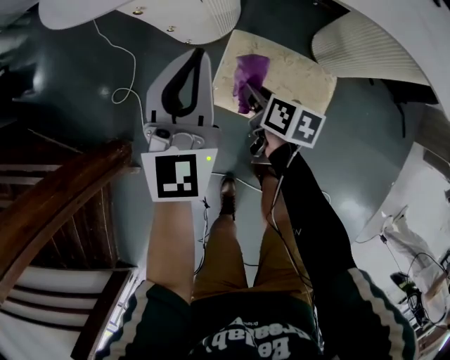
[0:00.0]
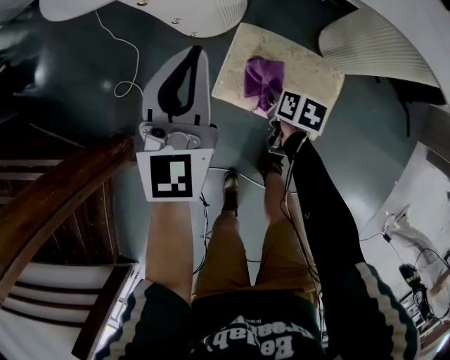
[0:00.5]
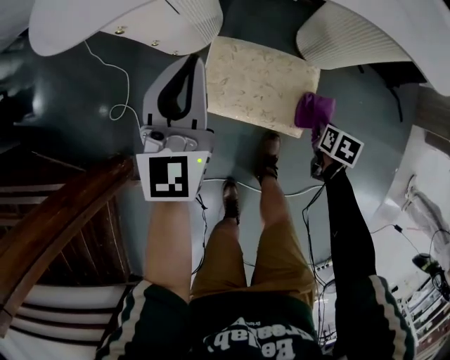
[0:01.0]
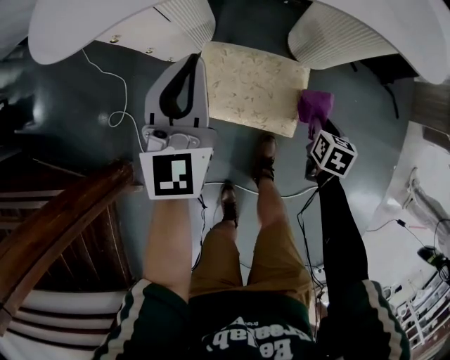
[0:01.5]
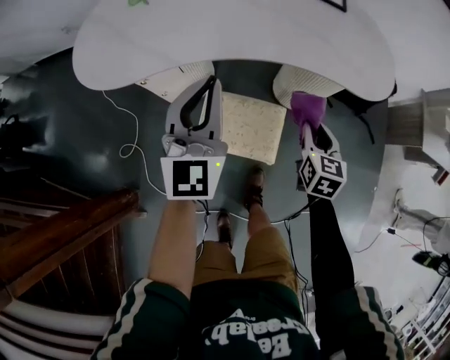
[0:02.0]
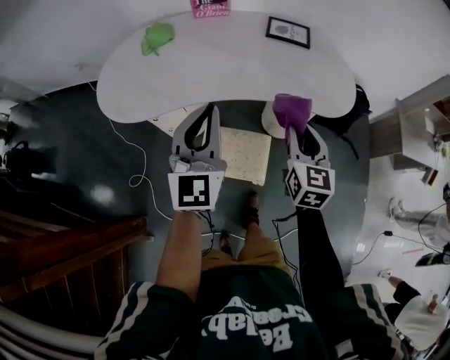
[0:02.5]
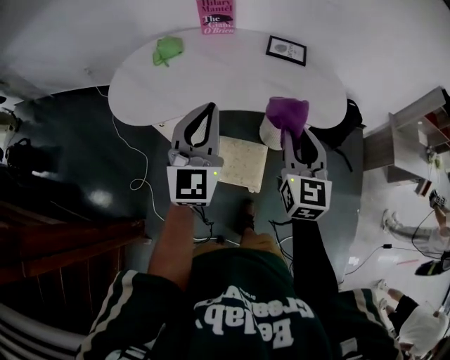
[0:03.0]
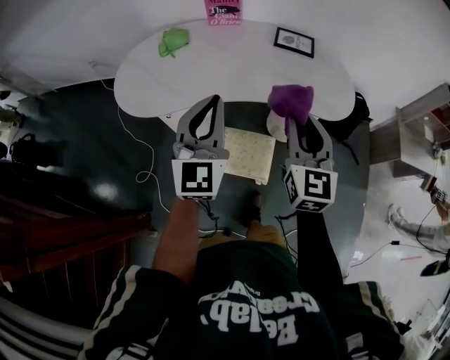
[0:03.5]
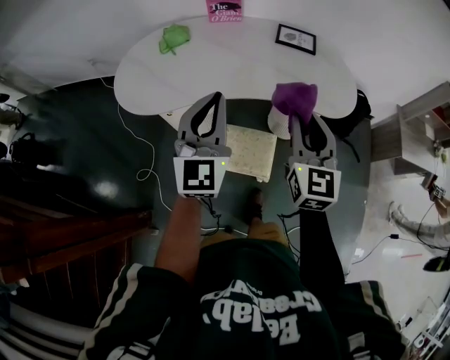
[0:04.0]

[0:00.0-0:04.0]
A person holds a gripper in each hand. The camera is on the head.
0:00.0 to 0:02.0: The right gripper moves about 30 cm, and rotates approximately 50 degrees, while the left gripper shifts some 15 cm upward.
0:02.0 to 0:04.0: The left gripper travels upward by roughly 20 cm. Meanwhile the right gripper shifts roughly 35 cm upward, and rotates approximately 30 degrees.

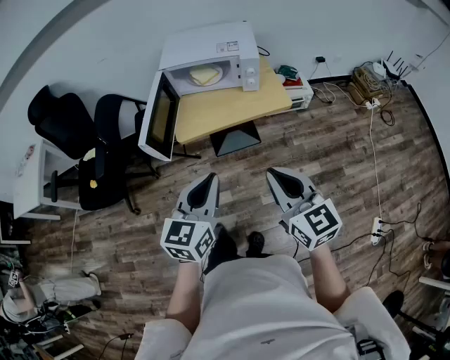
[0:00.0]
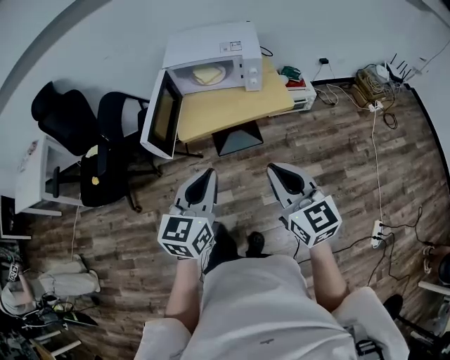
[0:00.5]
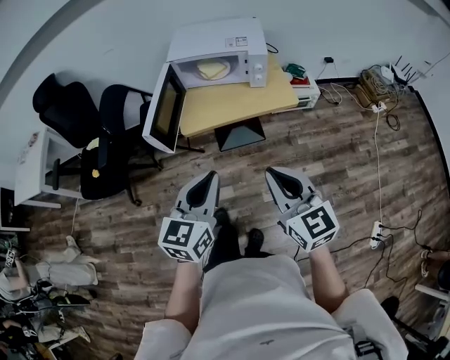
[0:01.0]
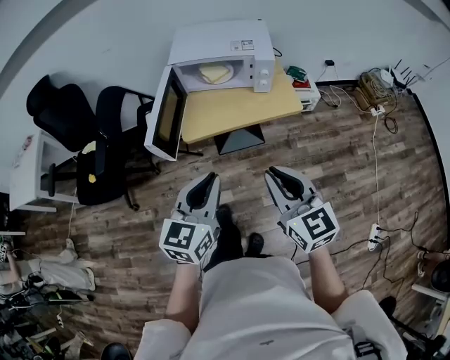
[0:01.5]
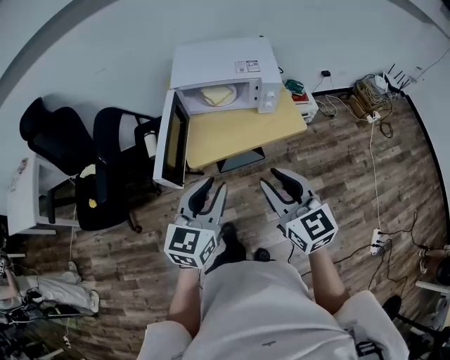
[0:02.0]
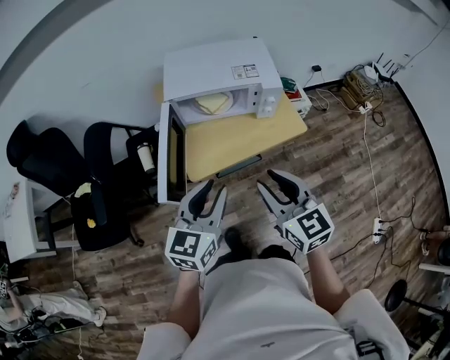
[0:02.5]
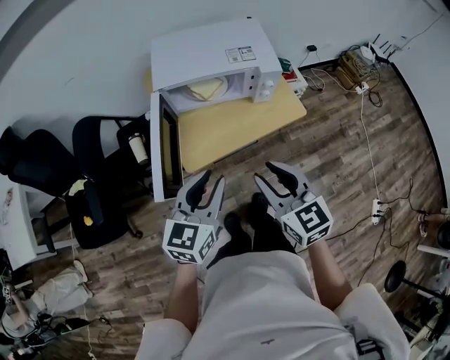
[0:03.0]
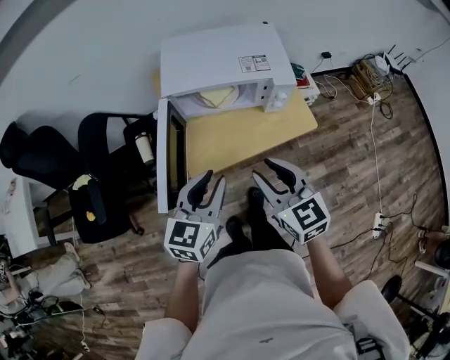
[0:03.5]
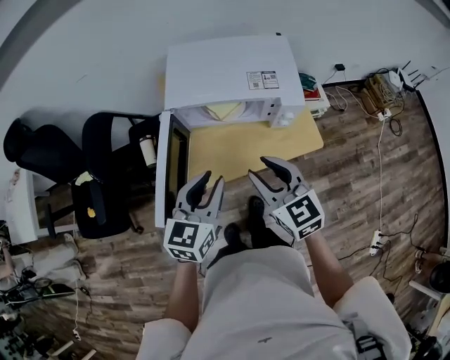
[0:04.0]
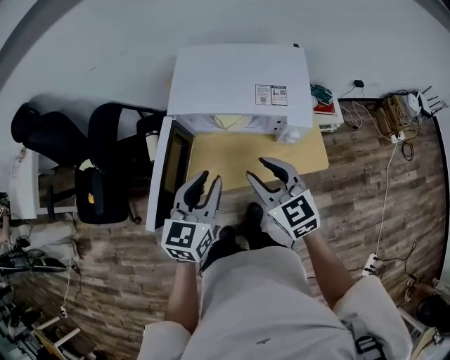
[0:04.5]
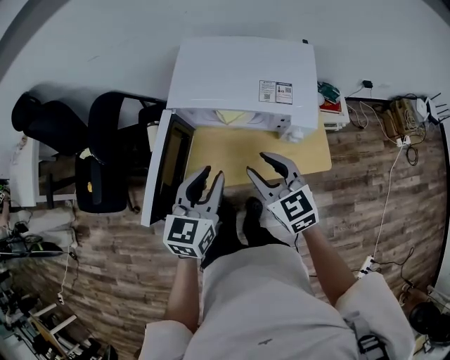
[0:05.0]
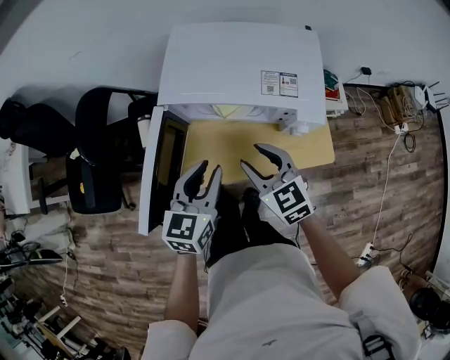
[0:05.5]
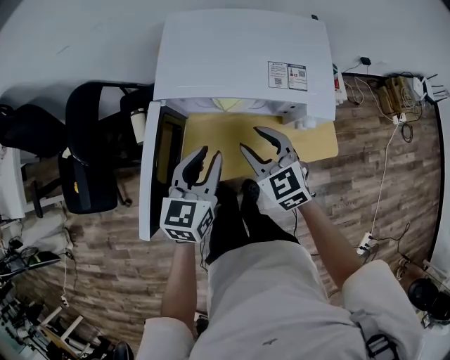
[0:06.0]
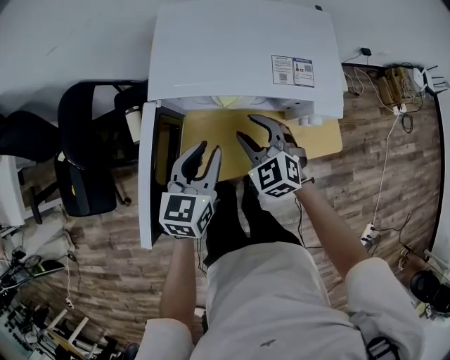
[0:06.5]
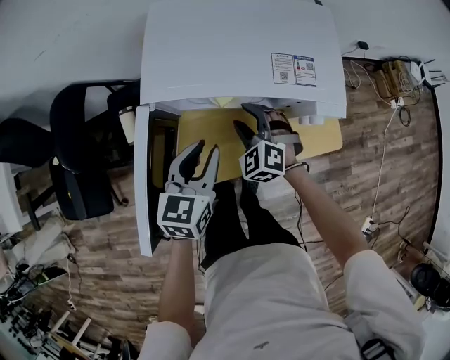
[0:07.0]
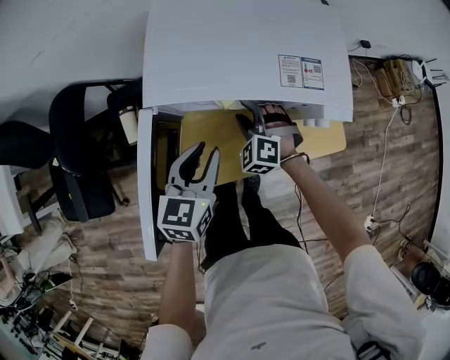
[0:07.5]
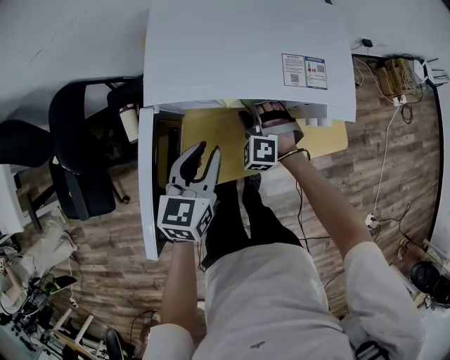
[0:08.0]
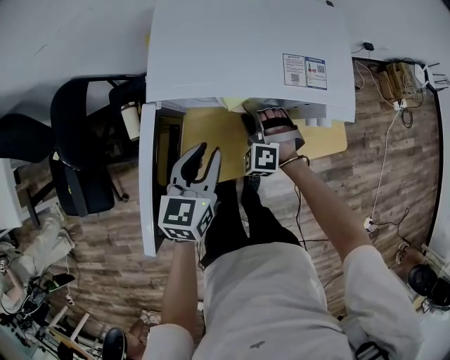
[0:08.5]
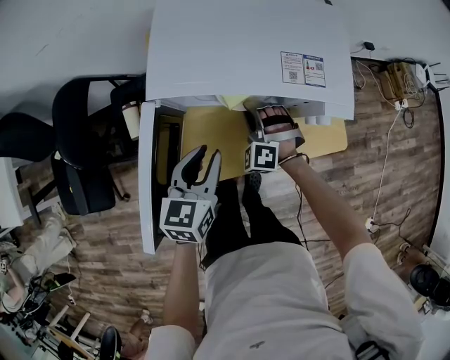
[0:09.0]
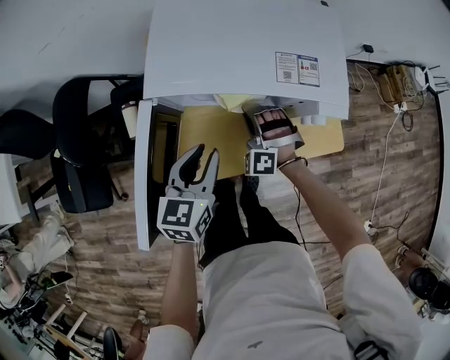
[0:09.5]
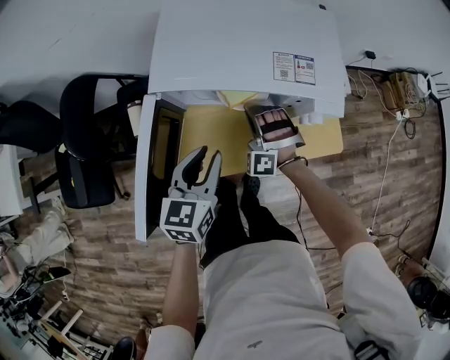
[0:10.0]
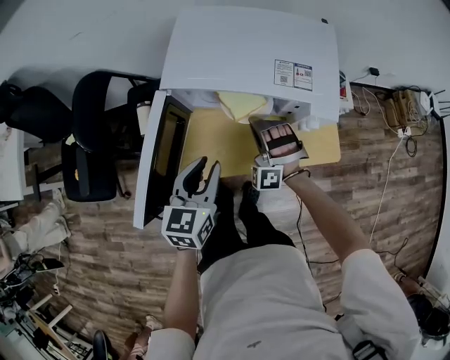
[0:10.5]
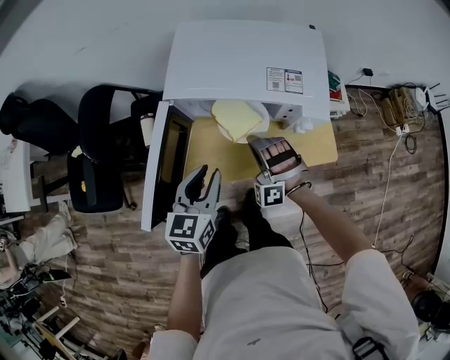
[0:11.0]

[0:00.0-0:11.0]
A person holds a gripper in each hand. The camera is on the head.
0:00.0 to 0:02.0: The two grippers go some 15 cm forward and to the left. The left gripper opens up; the right gripper opens its fingers.
0:02.0 to 0:03.5: The right gripper shifts approximately 15 cm forward and downward. Meanwhile the left gripper heads forward, covering some 15 cm.
0:03.5 to 0:05.5: Both grippers travel together forward and downward, some 15 cm. The right gripper swivels roughly 20 degrees.
0:05.5 to 0:07.5: The right gripper goes some 20 cm downward and forward, and rolls counterclockwise, seen from behind, by approximately 40 degrees, while the left gripper heads downward and forward, covering some 10 cm.
0:07.5 to 0:09.0: The right gripper closes.
0:09.0 to 0:11.0: The left gripper travels backward and upward by about 10 cm. The right gripper moves upward and backward, approximately 15 cm, and rotates about 30 degrees.

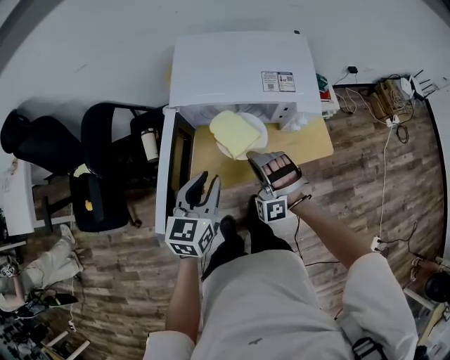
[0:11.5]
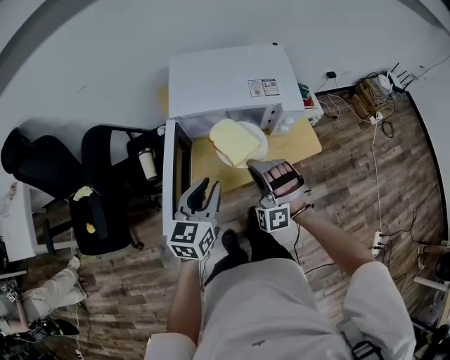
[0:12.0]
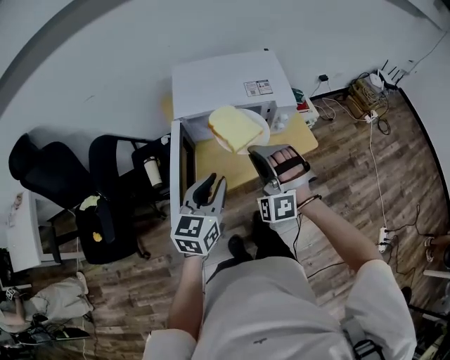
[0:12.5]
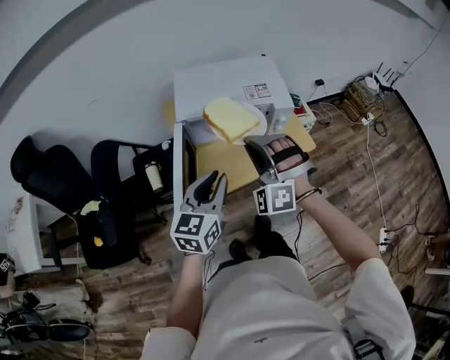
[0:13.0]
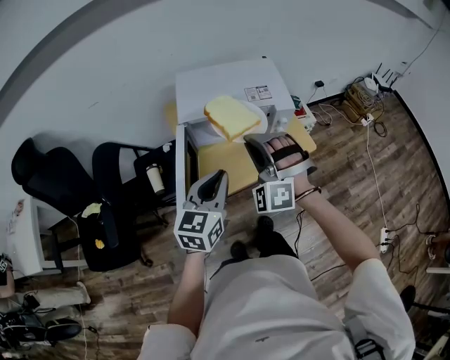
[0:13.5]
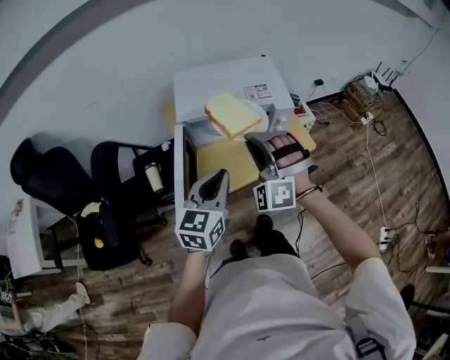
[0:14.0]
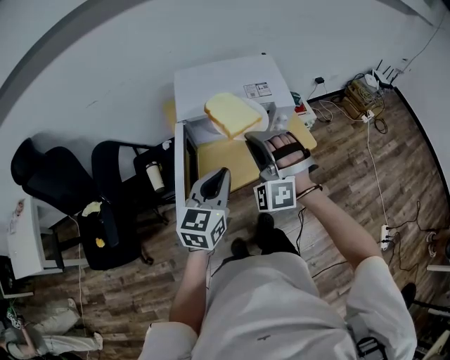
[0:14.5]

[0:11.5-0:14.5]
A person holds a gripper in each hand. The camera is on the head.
0:11.5 to 0:13.0: The left gripper heads upward and backward, covering about 10 cm, while the right gripper shifts some 20 cm upward.
0:13.0 to 0:14.5: There are only small adjustments of the grippers.

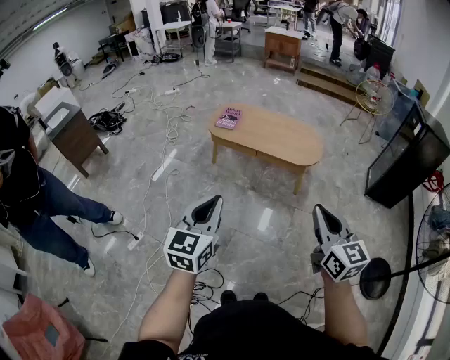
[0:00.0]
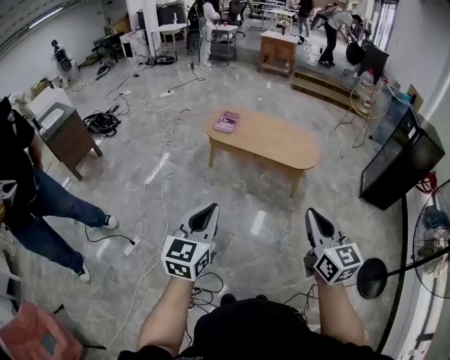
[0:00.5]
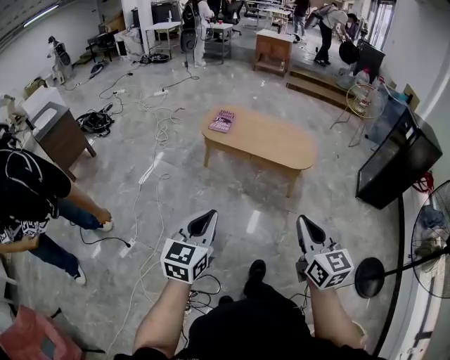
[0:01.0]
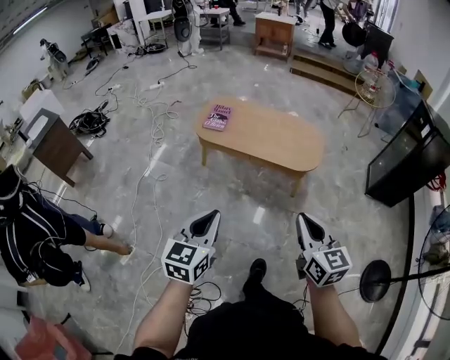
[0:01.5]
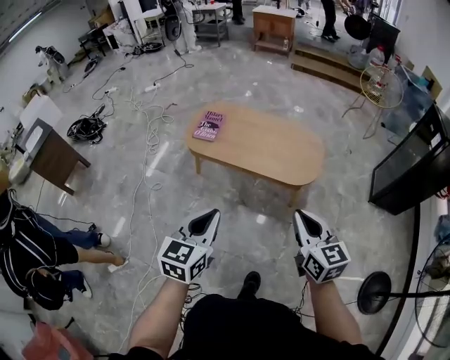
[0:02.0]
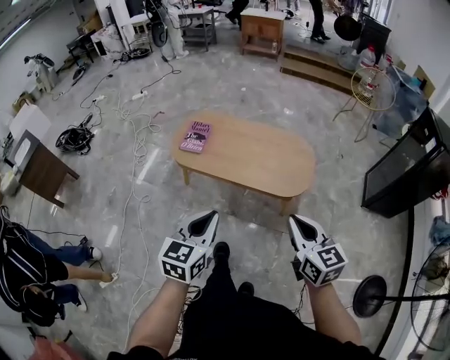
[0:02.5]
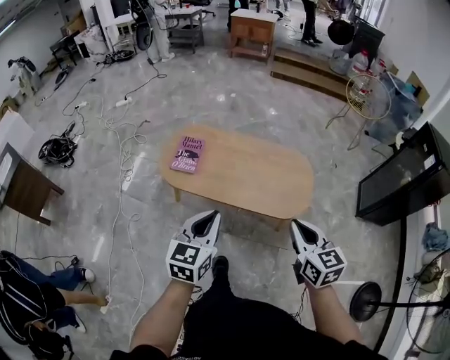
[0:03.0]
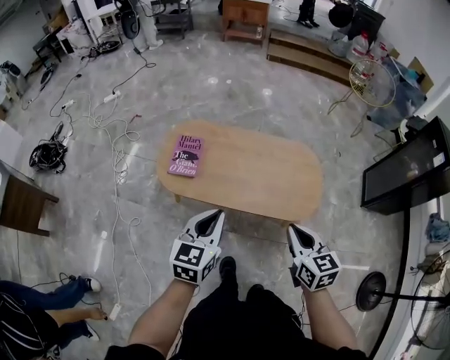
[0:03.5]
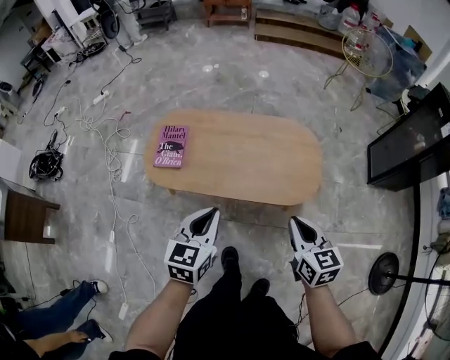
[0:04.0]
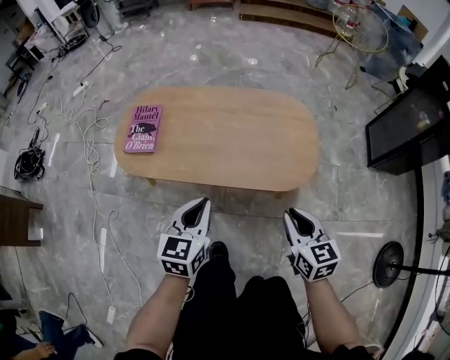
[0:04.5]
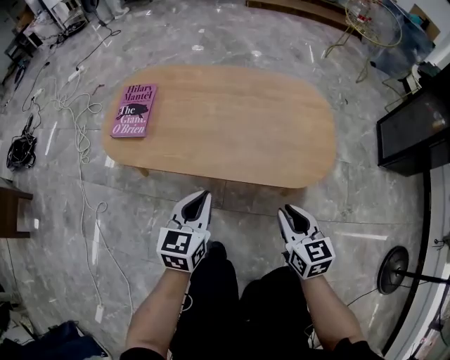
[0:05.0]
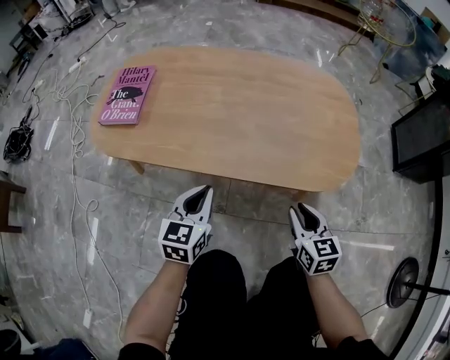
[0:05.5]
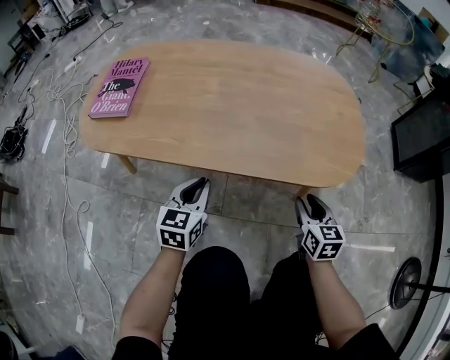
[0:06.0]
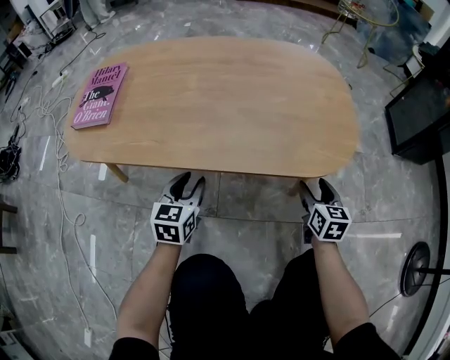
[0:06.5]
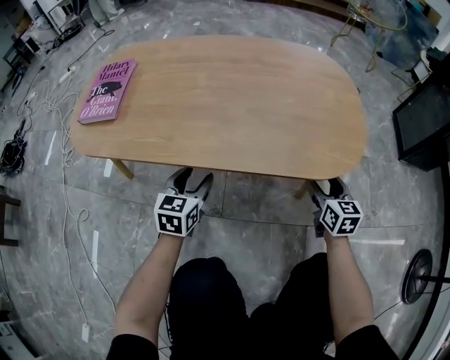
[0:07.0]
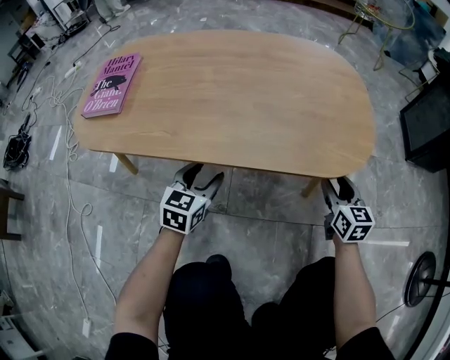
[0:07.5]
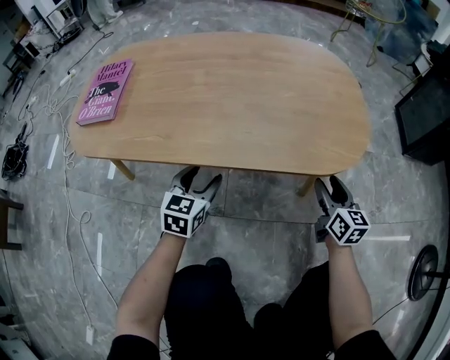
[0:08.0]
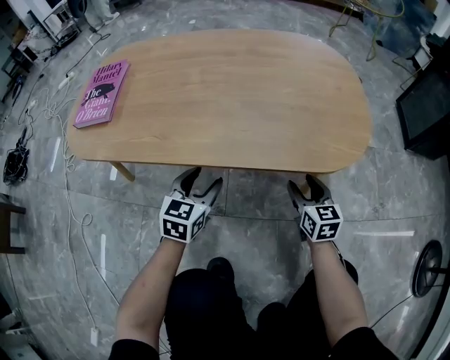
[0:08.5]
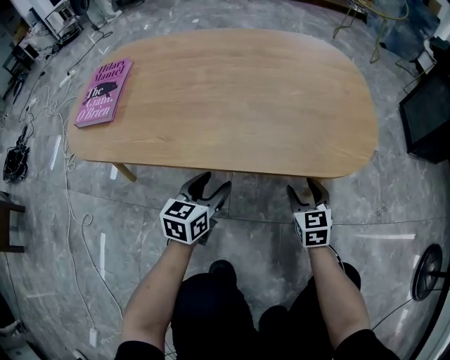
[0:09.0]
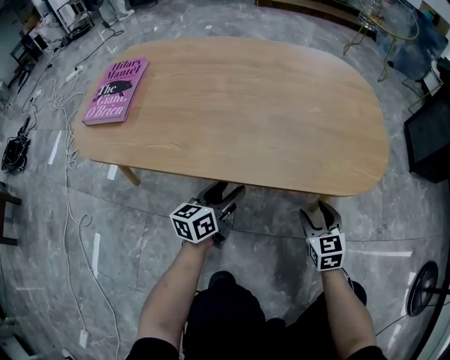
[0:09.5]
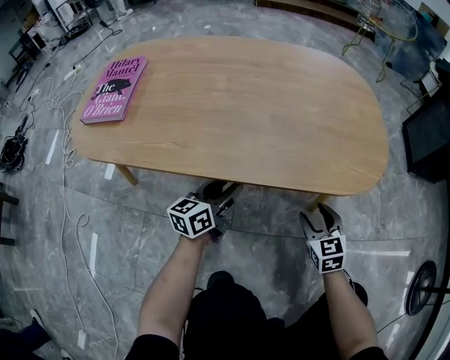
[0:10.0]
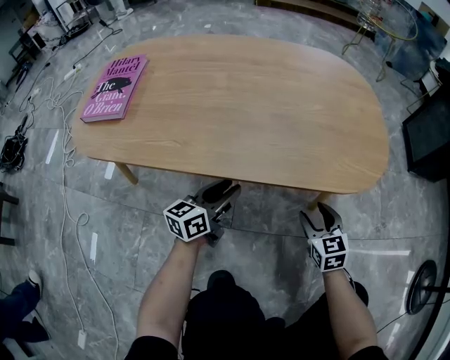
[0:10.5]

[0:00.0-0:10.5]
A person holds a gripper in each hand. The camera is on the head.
0:00.0 to 0:02.0: Both grippers move forward, roughly 30 cm.
0:02.0 to 0:04.0: Both grippers travel together forward and downward, roughly 35 cm.
0:04.0 to 0:06.5: The two grippers go approximately 50 cm downward. The right gripper opens, while the left gripper opens its fingers.
0:06.5 to 0:08.5: The right gripper moves to the left, some 5 cm.
0:08.5 to 0:10.5: The left gripper rotates approximately 40 degrees, and closes its fingers.
